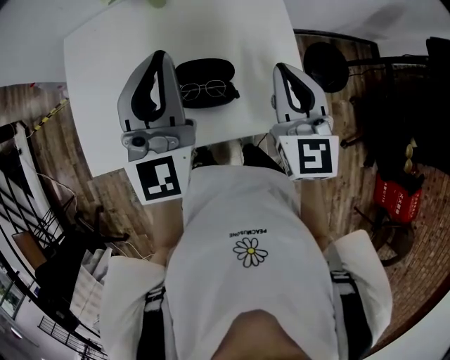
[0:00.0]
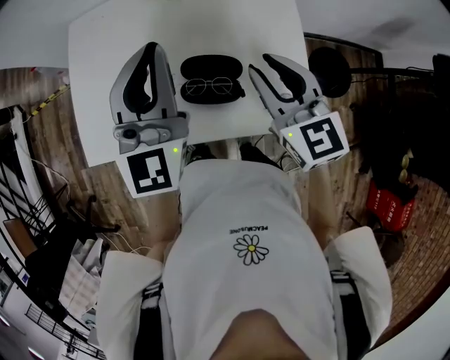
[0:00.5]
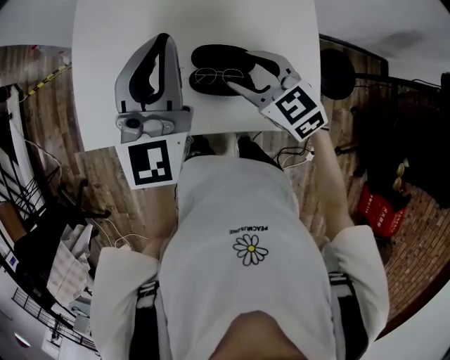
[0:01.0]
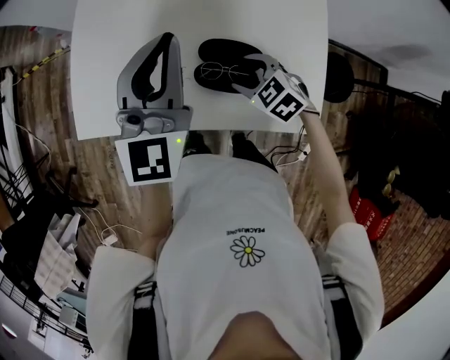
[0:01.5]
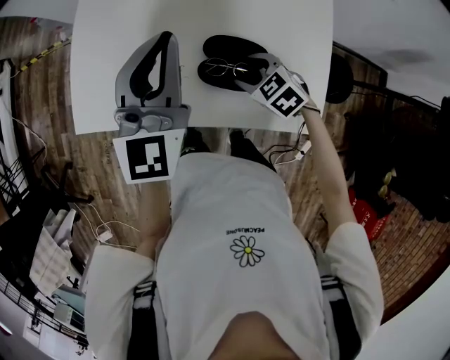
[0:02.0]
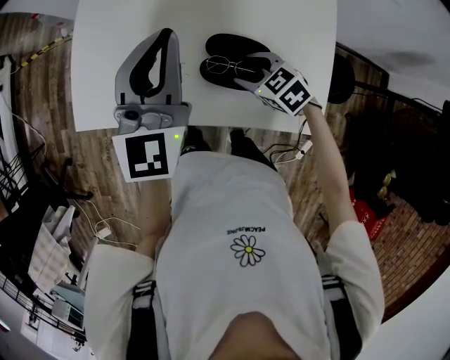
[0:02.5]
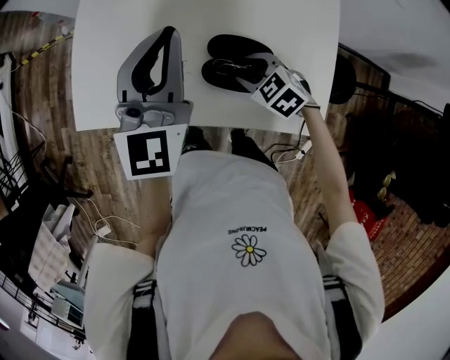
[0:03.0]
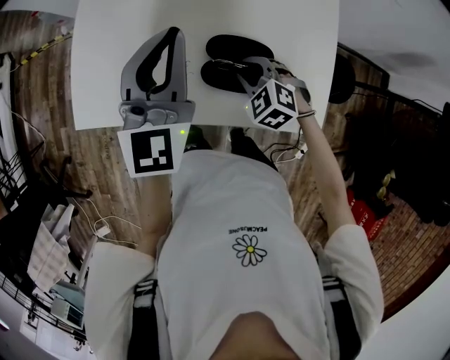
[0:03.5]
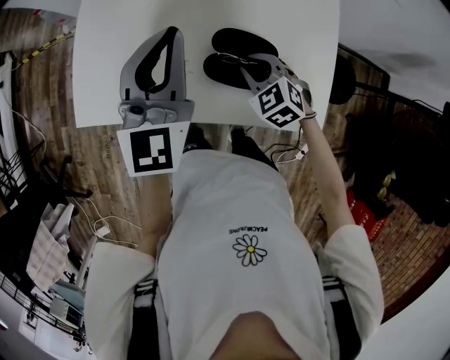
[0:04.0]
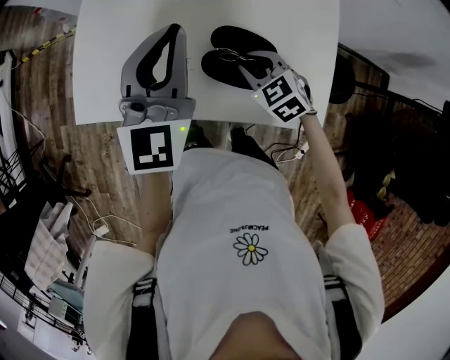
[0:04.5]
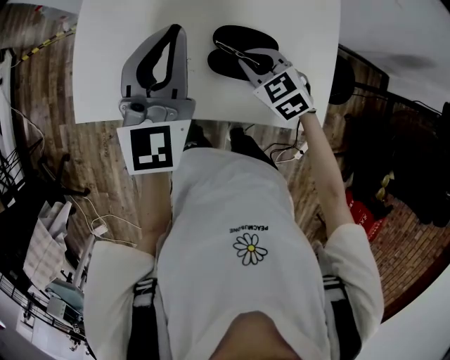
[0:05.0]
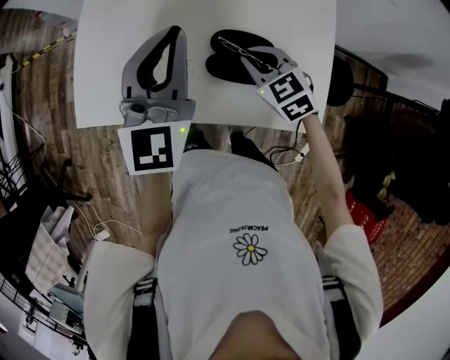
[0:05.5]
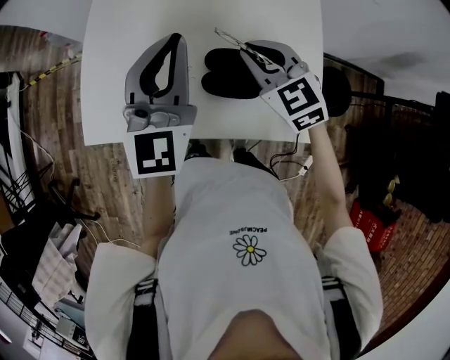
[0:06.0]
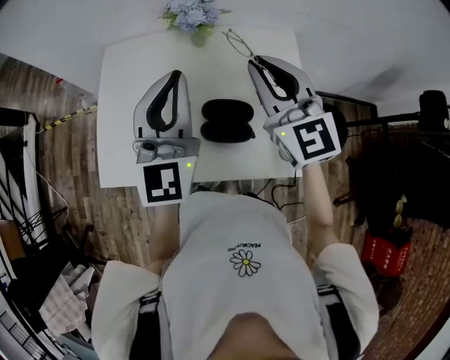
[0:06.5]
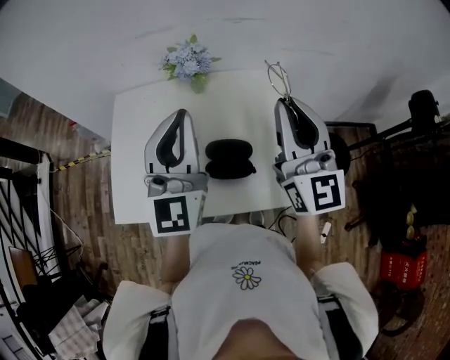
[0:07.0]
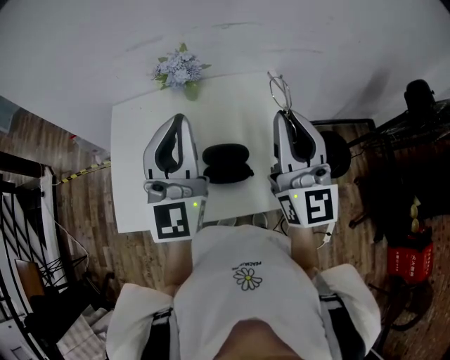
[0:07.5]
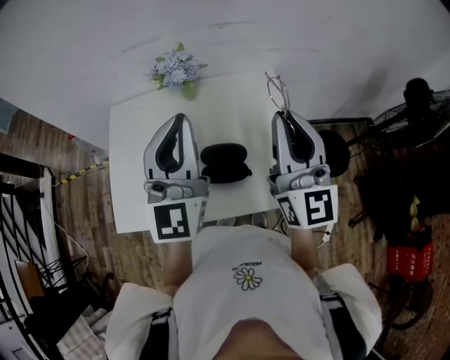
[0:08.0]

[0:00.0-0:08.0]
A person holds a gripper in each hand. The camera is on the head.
0:00.0 to 0:02.0: The left gripper ends up about 10 cm from where it was, while the right gripper goes approximately 25 cm downward, tilts its fingers some 50 degrees downward, and opens up.
0:02.0 to 0:04.0: The right gripper closes up.
0:04.0 to 0:06.0: The right gripper heads upward, covering roughly 15 cm, and changes its angle by about 20 degrees.
0:06.0 to 0:08.0: The right gripper moves upward and to the right, about 25 cm, and points its fingers about 50 degrees further upward. Meanwhile the left gripper goes some 15 cm upward and to the right.

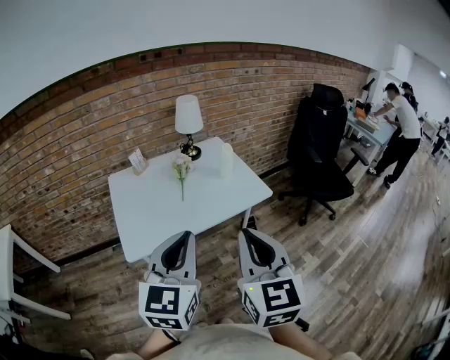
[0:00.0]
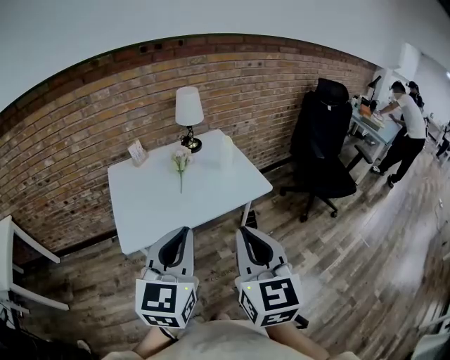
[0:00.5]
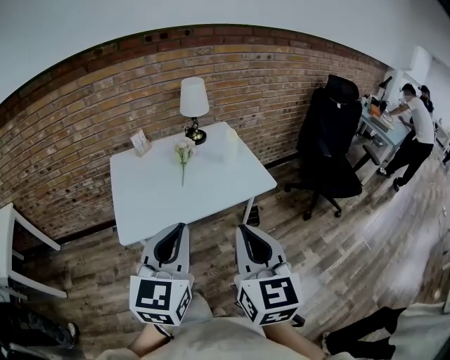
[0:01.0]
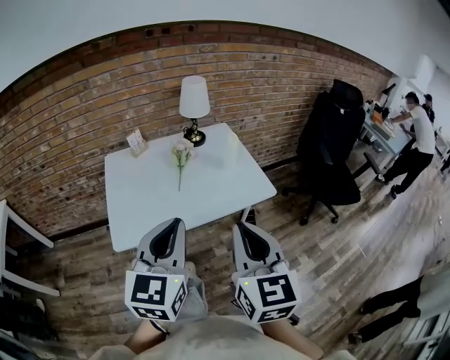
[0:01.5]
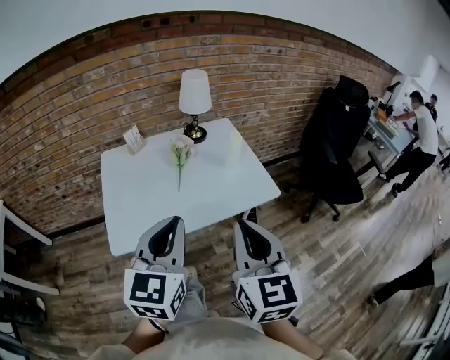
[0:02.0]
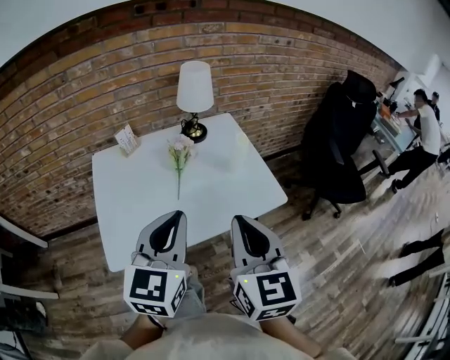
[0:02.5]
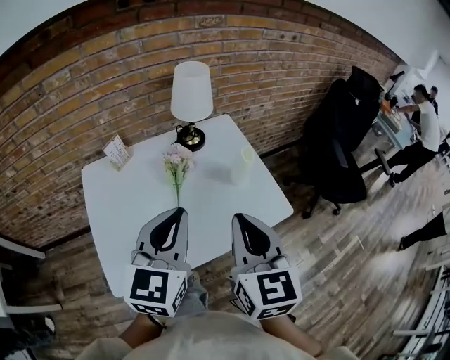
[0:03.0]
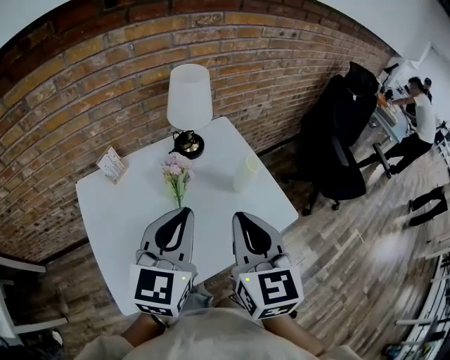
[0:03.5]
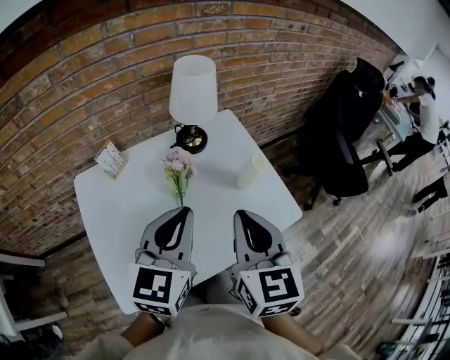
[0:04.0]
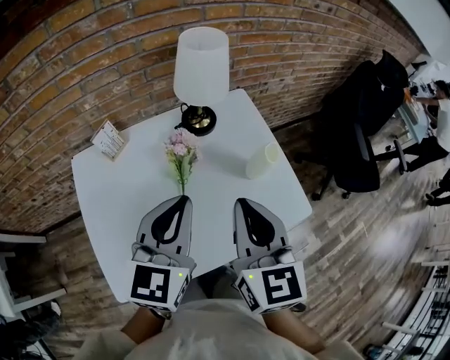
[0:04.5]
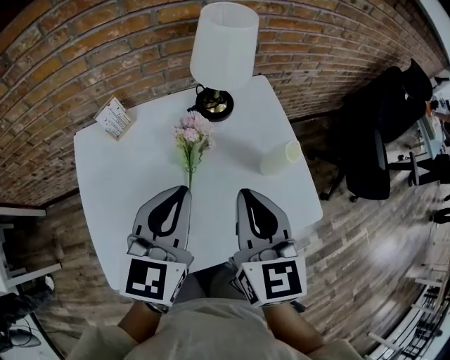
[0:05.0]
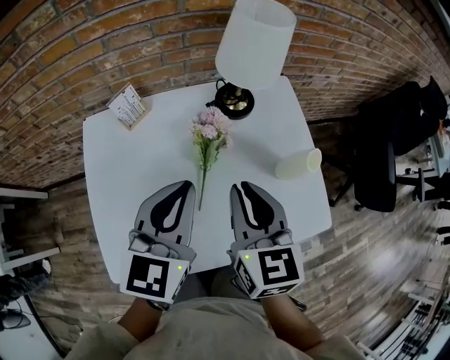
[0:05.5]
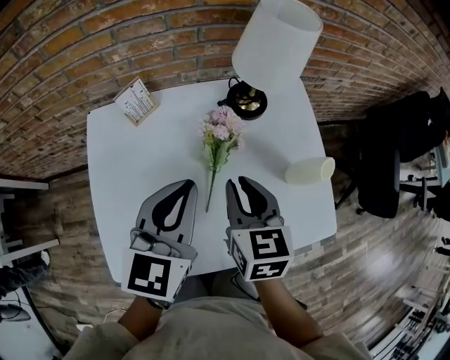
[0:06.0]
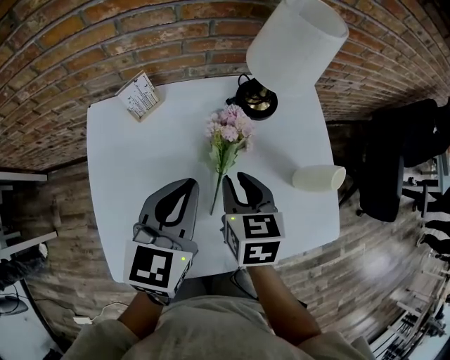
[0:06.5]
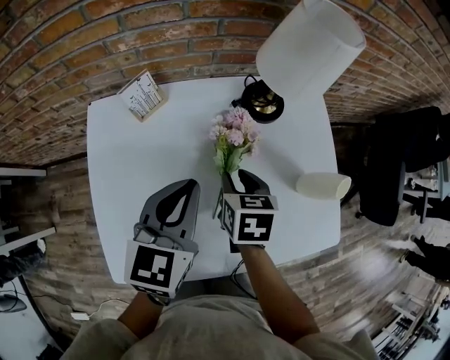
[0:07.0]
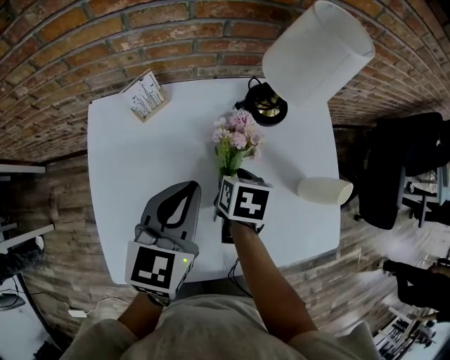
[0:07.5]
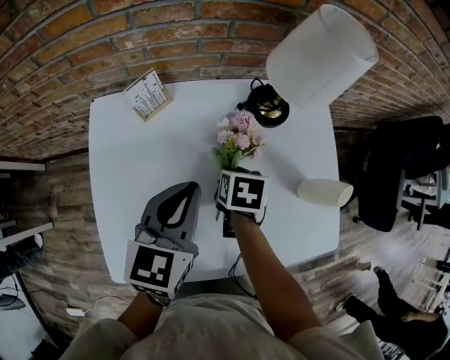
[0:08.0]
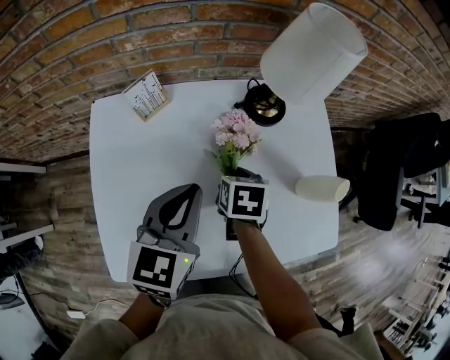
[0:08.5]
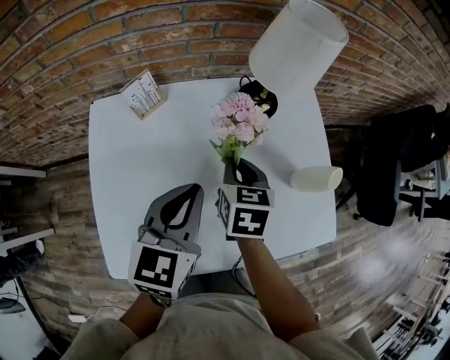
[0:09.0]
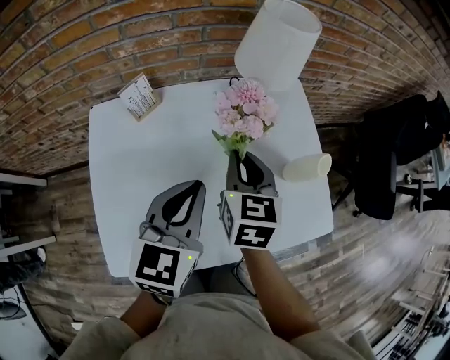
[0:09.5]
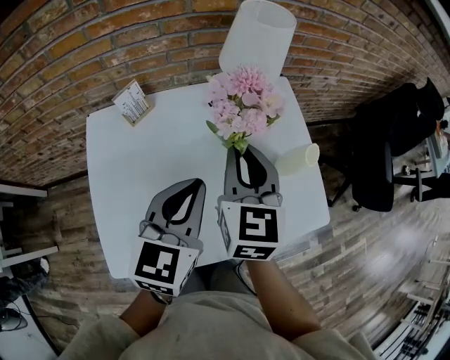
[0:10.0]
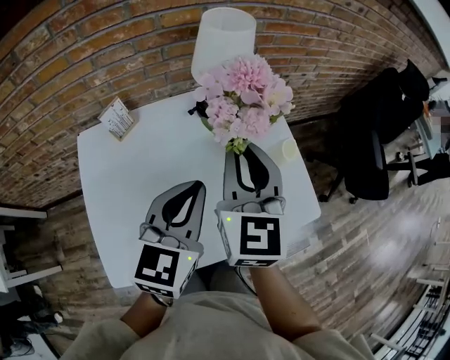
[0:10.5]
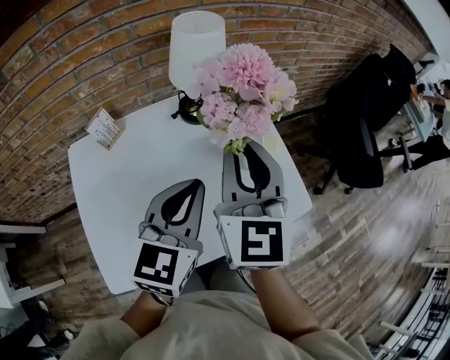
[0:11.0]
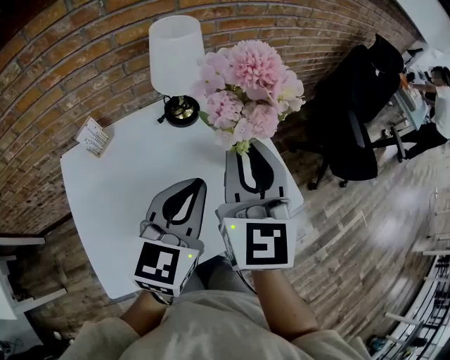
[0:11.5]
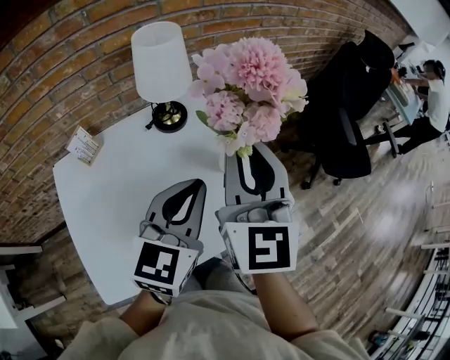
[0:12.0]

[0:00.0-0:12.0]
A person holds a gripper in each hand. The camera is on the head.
0:00.0 to 0:02.0: Both grippers move forward, approximately 10 cm.
0:02.0 to 0:04.0: The two grippers go some 25 cm forward.
0:04.0 to 0:06.0: The left gripper travels downward, forward and to the left by approximately 10 cm, while the right gripper heads downward, forward and to the left, covering some 20 cm, and turns by about 20 degrees.
0:06.0 to 0:08.0: The right gripper heads downward and forward, covering roughly 15 cm, and tilts its fingers roughly 30 degrees downward. Meanwhile the left gripper travels downward by approximately 5 cm.
0:08.0 to 0:10.0: The right gripper travels upward by approximately 25 cm, and points its fingers approximately 50 degrees further upward, while the left gripper goes approximately 10 cm to the right, upward and backward.
0:10.0 to 0:12.0: The left gripper is displaced to the right by approximately 15 cm; the right gripper travels to the right and upward by about 20 cm, and changes its angle by some 20 degrees.

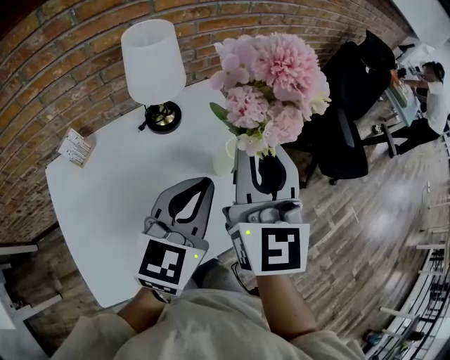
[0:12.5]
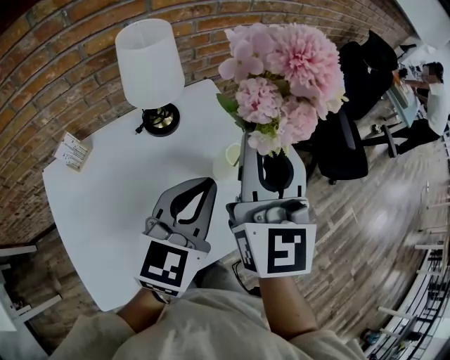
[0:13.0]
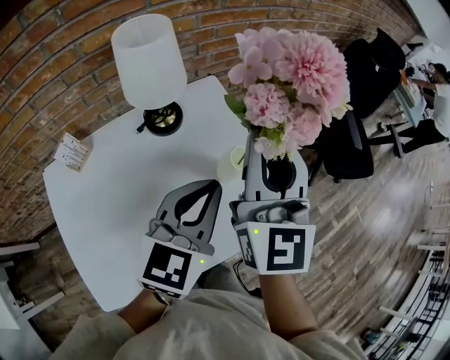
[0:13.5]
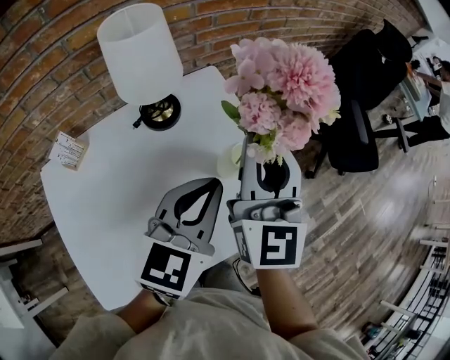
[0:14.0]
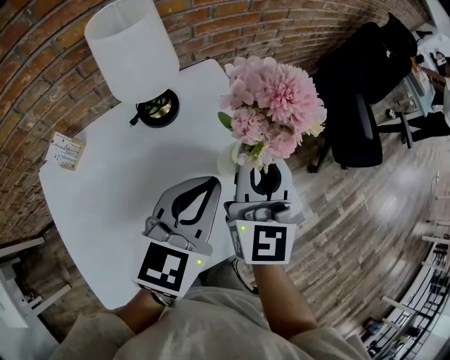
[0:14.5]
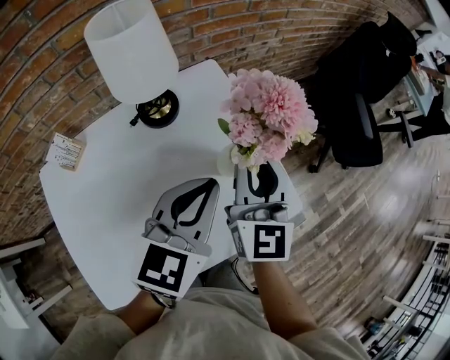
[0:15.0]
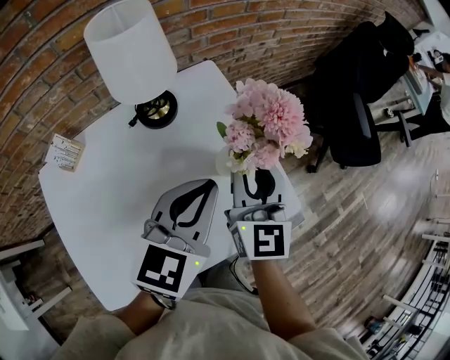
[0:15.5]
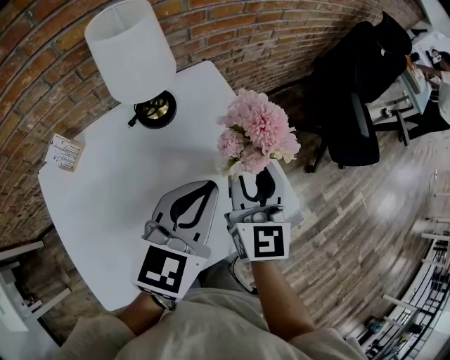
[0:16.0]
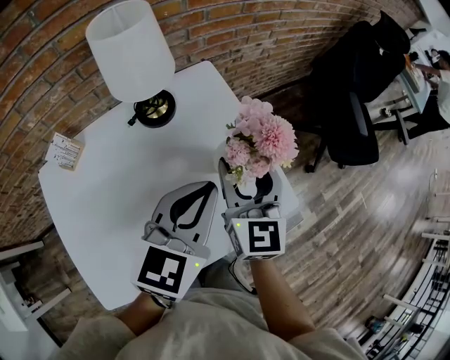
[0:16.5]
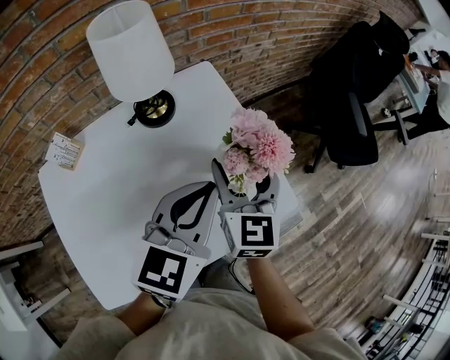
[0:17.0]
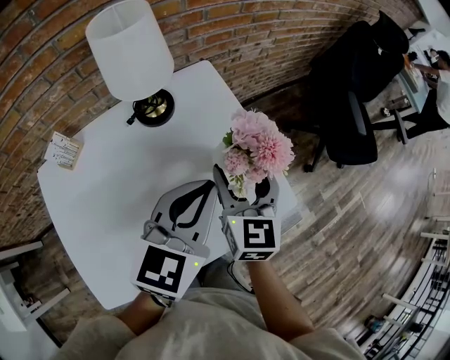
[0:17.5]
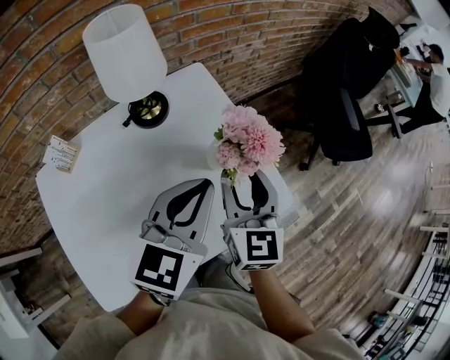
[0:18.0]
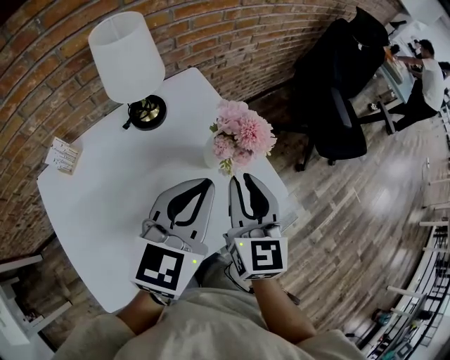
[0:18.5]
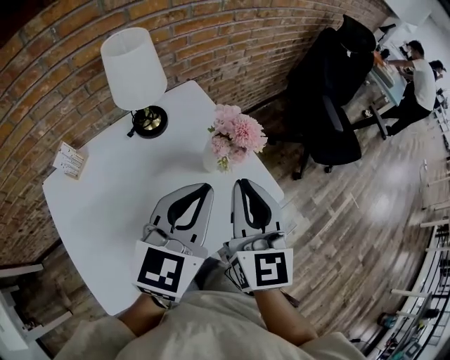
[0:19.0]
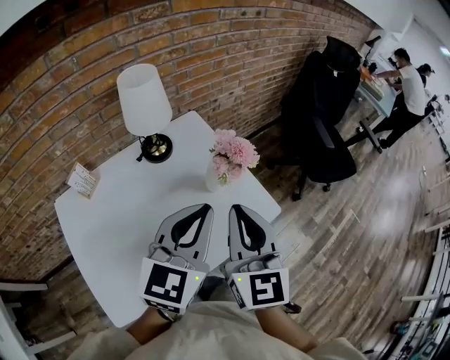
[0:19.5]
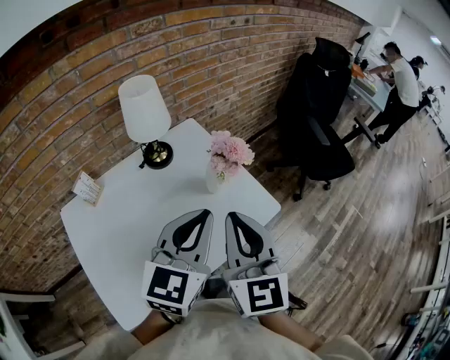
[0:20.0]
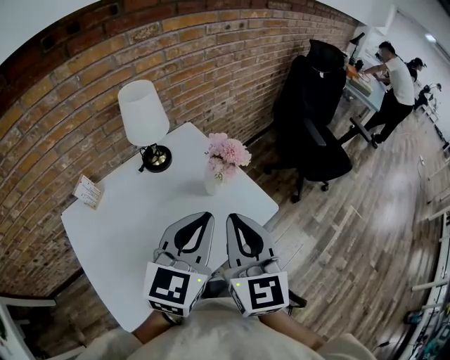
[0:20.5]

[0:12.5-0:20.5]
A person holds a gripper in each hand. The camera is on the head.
0:12.5 to 0:14.5: The right gripper travels downward and forward by some 15 cm. The left gripper shifts some 5 cm forward.
0:14.5 to 0:16.5: The right gripper moves downward, roughly 5 cm, and opens.
0:16.5 to 0:18.5: The right gripper moves backward, some 5 cm, and closes.
0:18.5 to 0:20.5: The two grippers go approximately 15 cm backward and upward.
